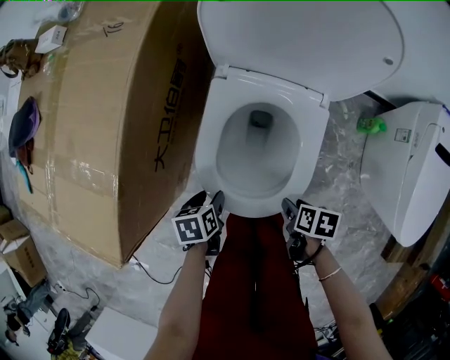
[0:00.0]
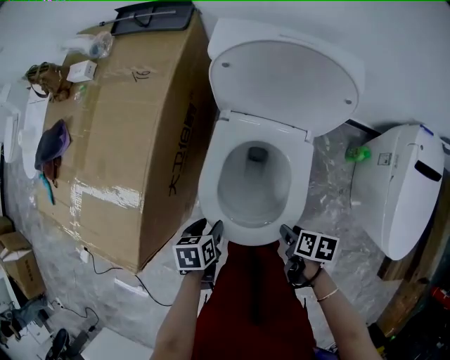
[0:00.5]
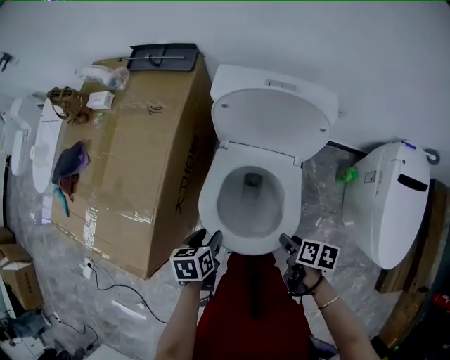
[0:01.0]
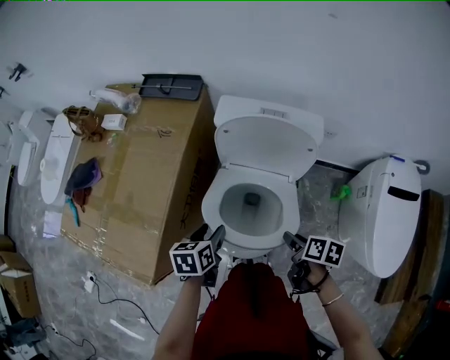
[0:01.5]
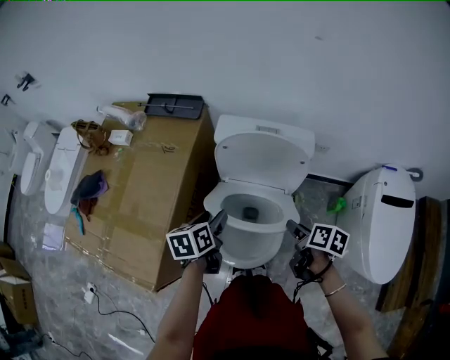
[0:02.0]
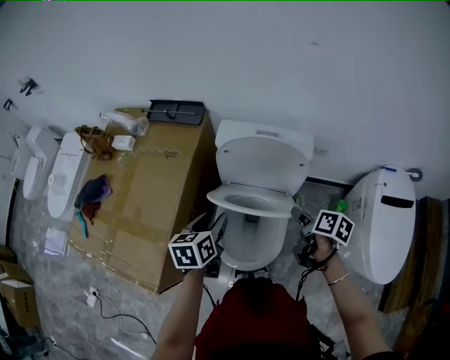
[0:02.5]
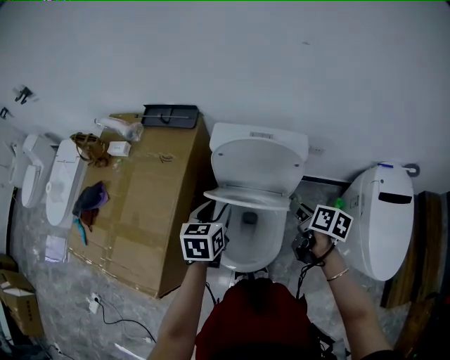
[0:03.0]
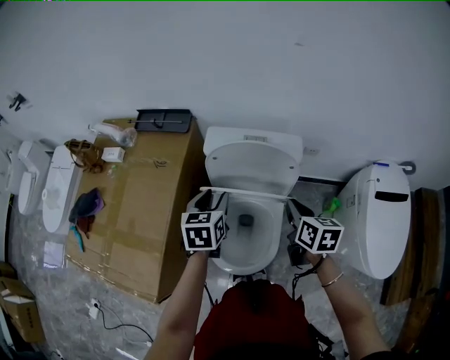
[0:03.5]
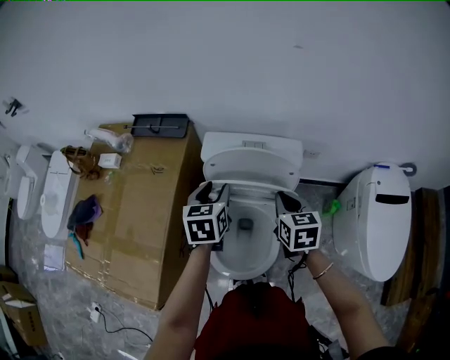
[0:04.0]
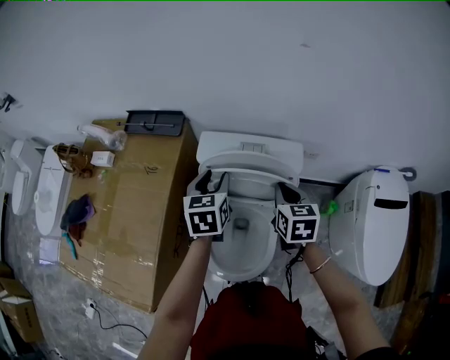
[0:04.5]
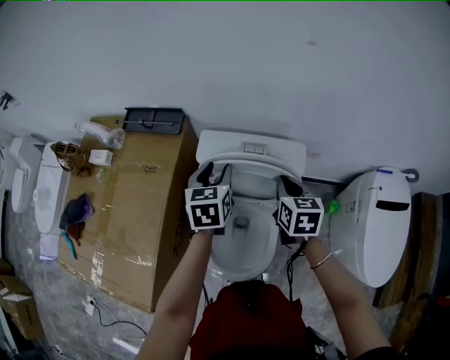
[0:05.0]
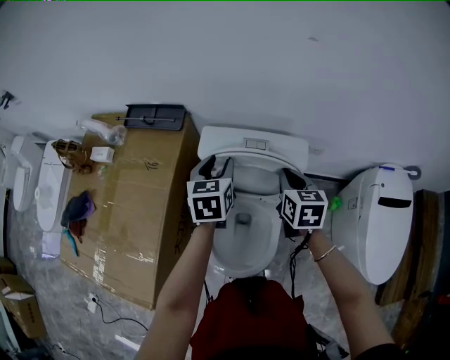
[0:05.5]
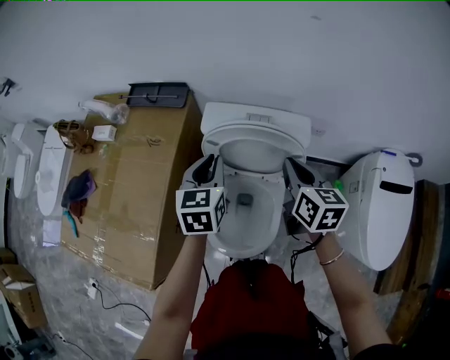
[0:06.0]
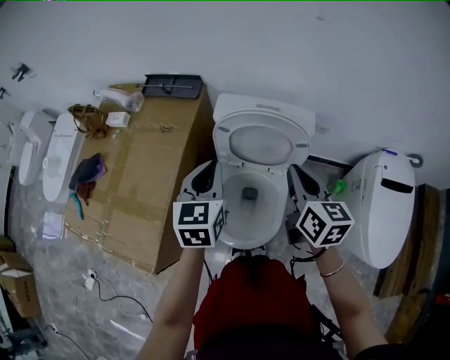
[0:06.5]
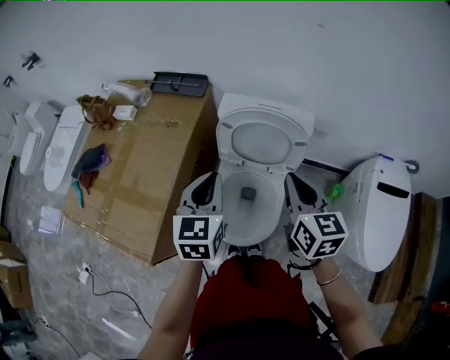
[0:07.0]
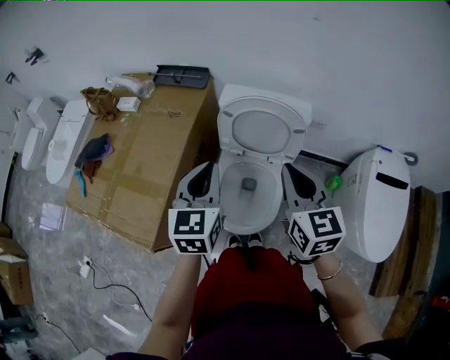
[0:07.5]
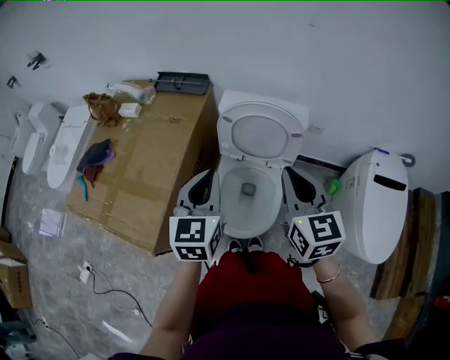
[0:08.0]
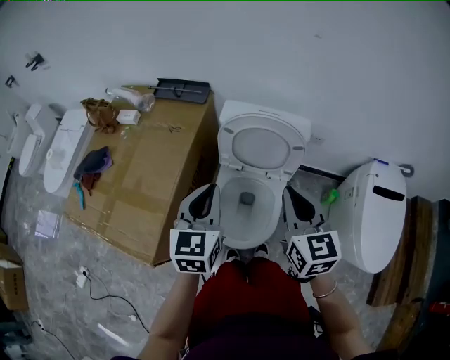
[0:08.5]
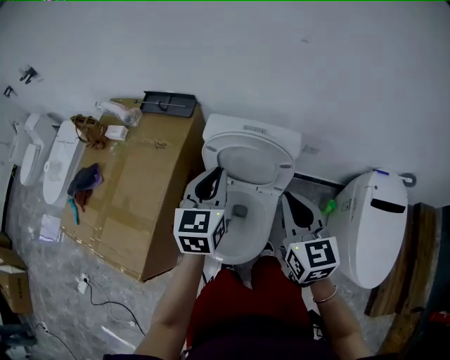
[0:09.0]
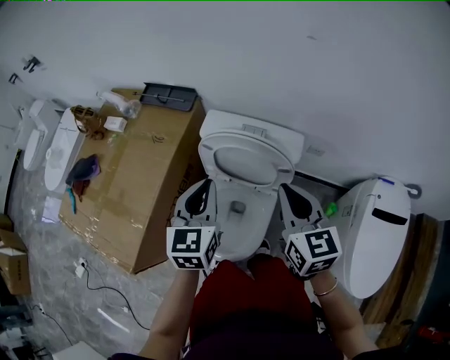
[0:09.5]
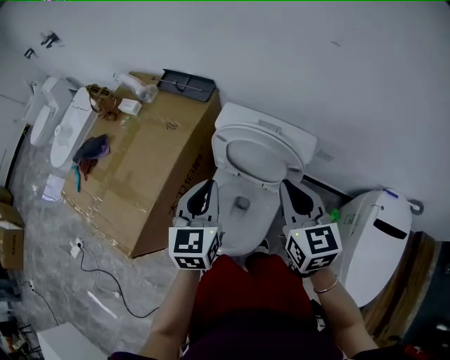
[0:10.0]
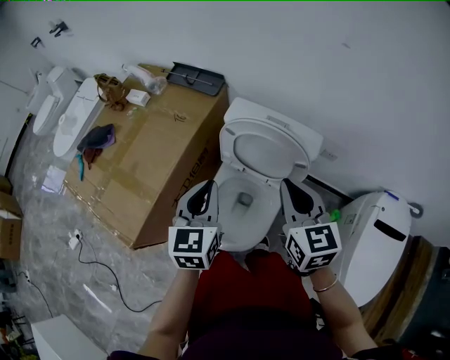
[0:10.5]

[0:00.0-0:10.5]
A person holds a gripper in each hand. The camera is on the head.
0:00.0 to 0:02.0: Both grippers move upward and forward, roughly 35 cm. The left gripper changes its angle by approximately 30 degrees. The right gripper changes its angle by approximately 30 degrees.
0:02.0 to 0:04.0: The right gripper travels forward and upward by roughly 15 cm, rotates around the line of its fingers by about 40 degrees, counterclockwise from behind, and closes its fingers. Meanwhile the left gripper travels forward, upward and to the right by some 15 cm, and turns by roughly 30 degrees.
0:04.0 to 0:06.5: The right gripper travels upward and backward by about 10 cm; the left gripper goes some 10 cm backward and upward, and closes.
0:06.5 to 0:08.5: The right gripper is displaced backward and upward by roughly 10 cm. Meanwhile the left gripper heads backward, covering roughly 10 cm.
0:08.5 to 0:10.5: The right gripper goes some 10 cm forward.

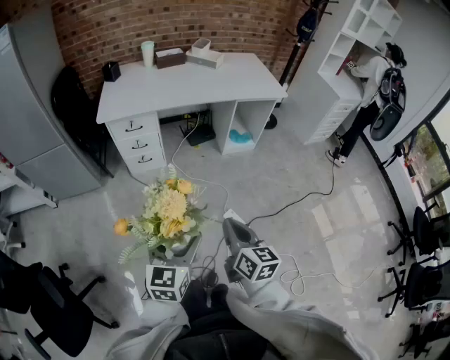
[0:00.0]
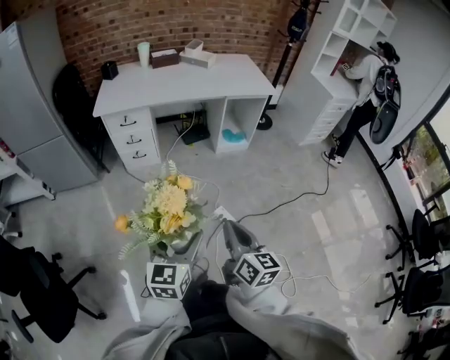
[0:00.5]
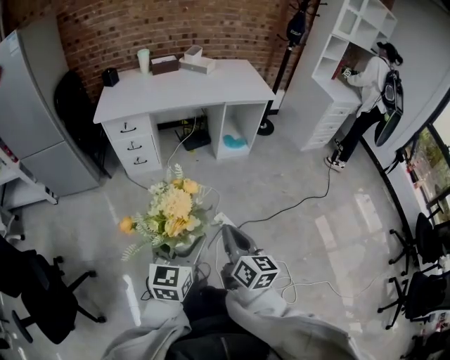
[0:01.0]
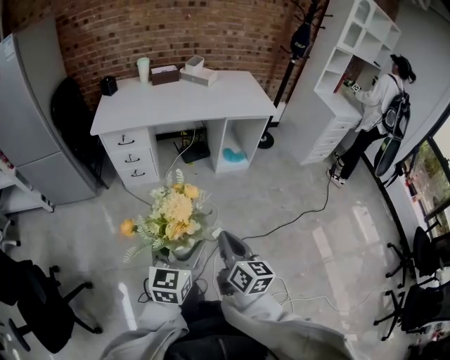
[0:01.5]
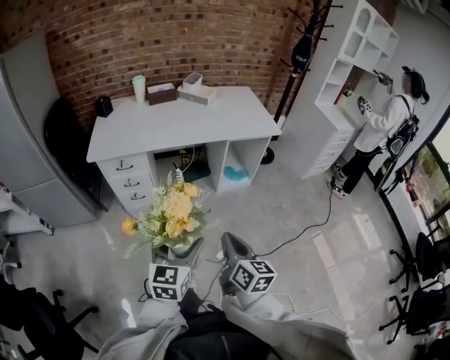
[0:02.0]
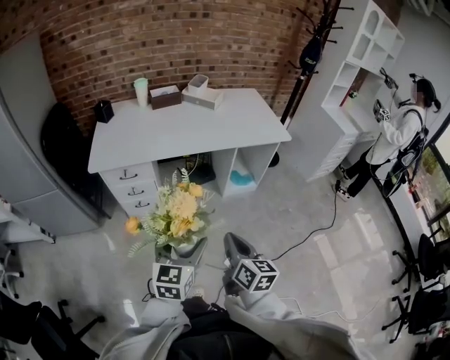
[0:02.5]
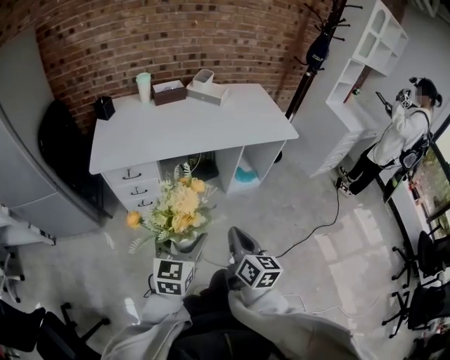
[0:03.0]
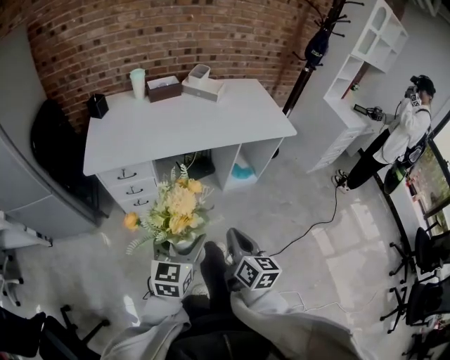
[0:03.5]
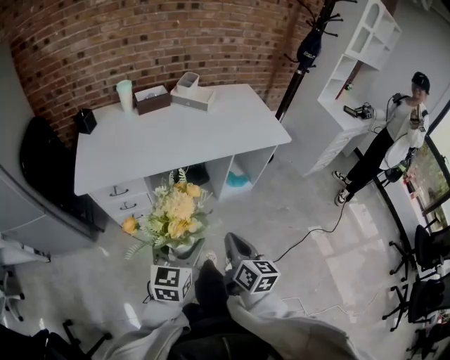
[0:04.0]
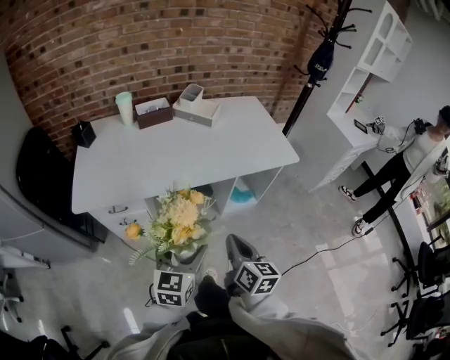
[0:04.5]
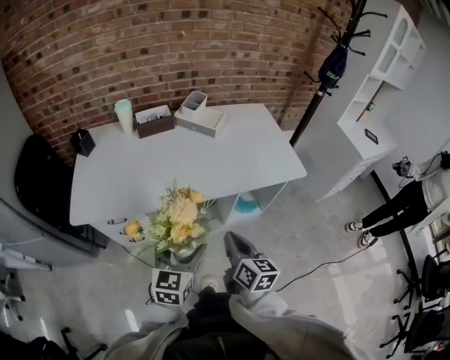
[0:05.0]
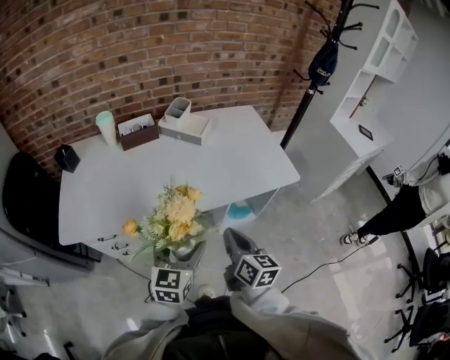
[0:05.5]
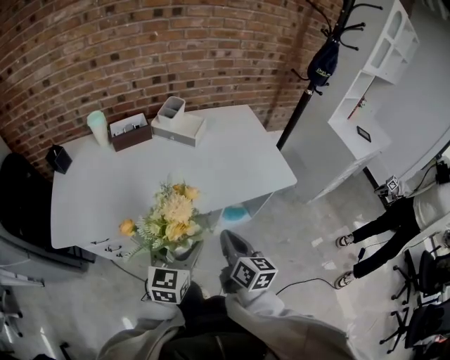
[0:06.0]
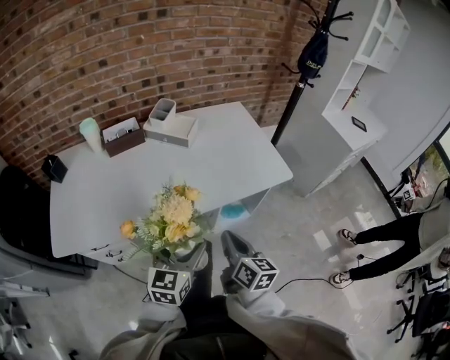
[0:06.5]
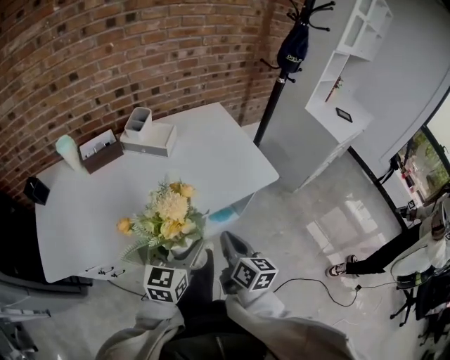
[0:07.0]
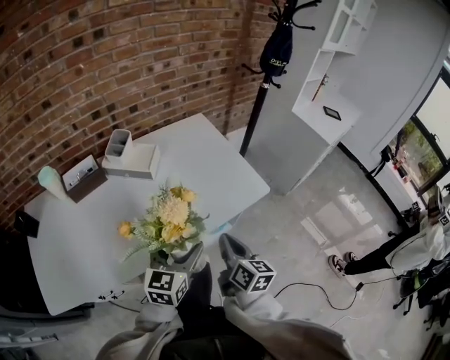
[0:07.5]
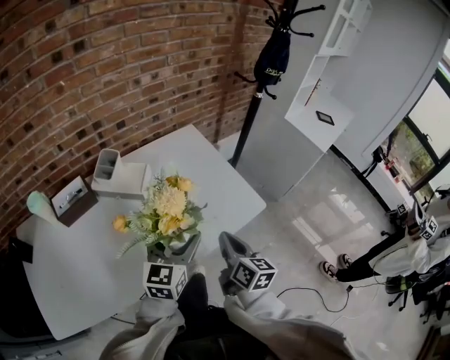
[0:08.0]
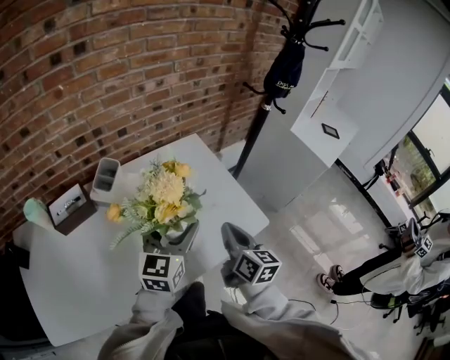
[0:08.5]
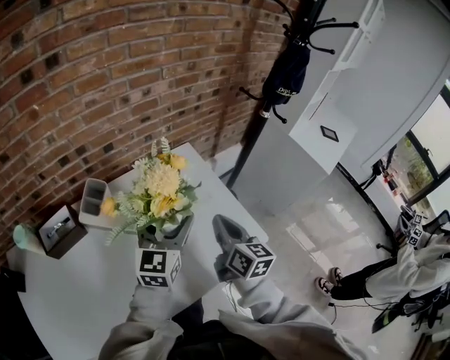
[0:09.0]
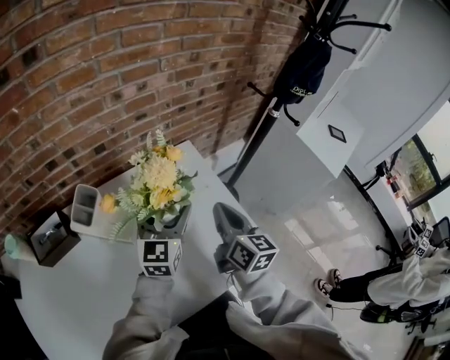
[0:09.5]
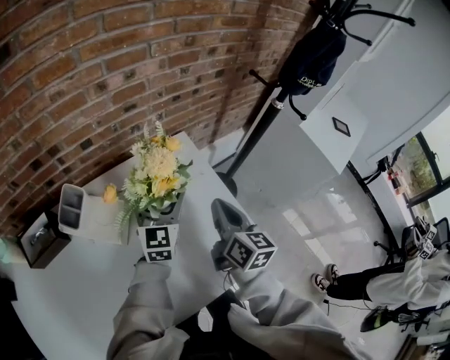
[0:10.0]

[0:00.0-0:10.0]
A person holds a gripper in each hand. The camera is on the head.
0:00.0 to 0:02.0: The grippers both shift forward and to the right by about 15 cm.
0:02.0 to 0:04.0: Both grippers travel together forward and to the left, about 20 cm.
0:04.0 to 0:06.0: Both grippers travel together forward, approximately 30 cm.
0:06.0 to 0:08.0: The left gripper moves forward, some 25 cm. Meanwhile the right gripper is displaced forward and to the right by approximately 25 cm.
0:08.0 to 0:10.0: Both grippers travel together forward, roughly 35 cm.

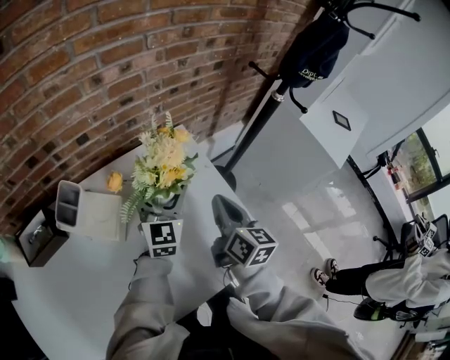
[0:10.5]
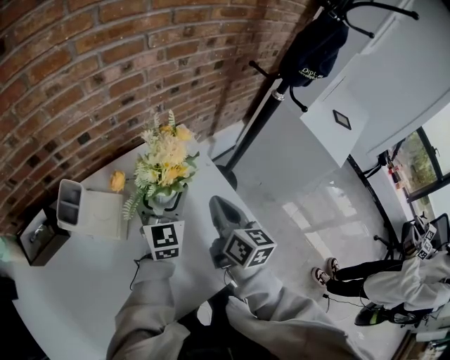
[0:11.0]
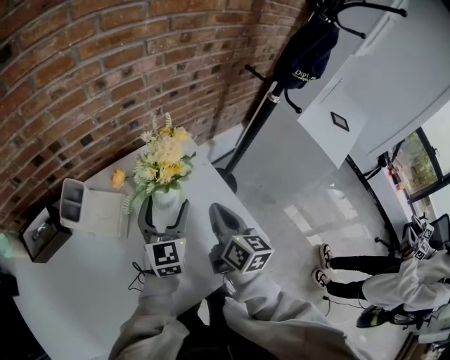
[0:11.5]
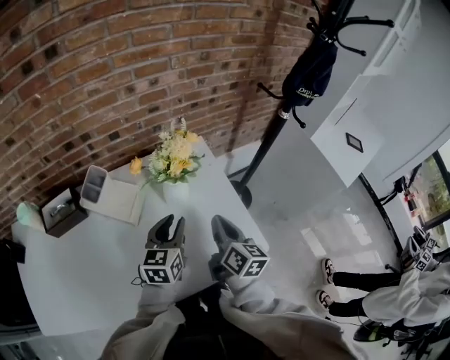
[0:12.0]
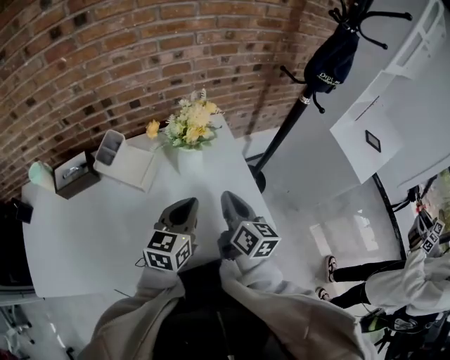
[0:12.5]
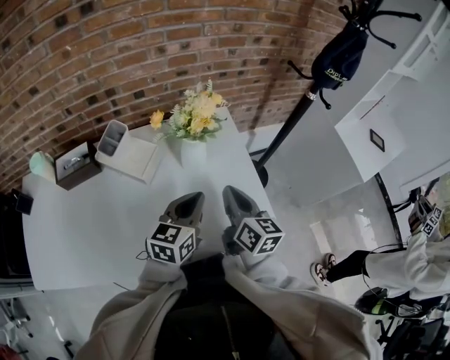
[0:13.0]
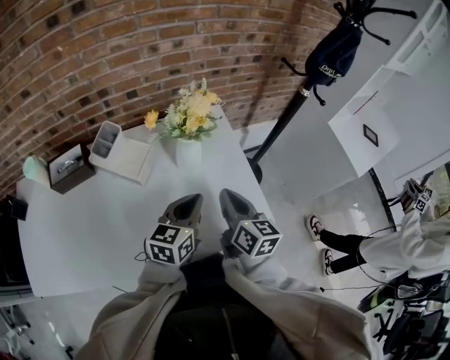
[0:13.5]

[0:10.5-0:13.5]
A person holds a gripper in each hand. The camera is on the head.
0:10.5 to 0:12.0: The left gripper goes roughly 15 cm backward, rotates some 30 degrees, and closes, while the right gripper moves backward, some 10 cm.
0:12.0 to 0:13.5: The left gripper travels backward by about 5 cm, and closes.

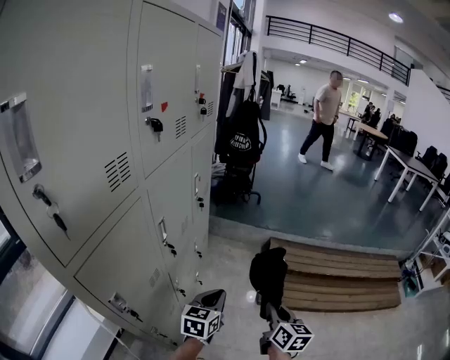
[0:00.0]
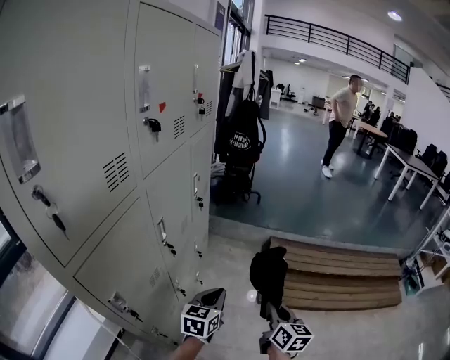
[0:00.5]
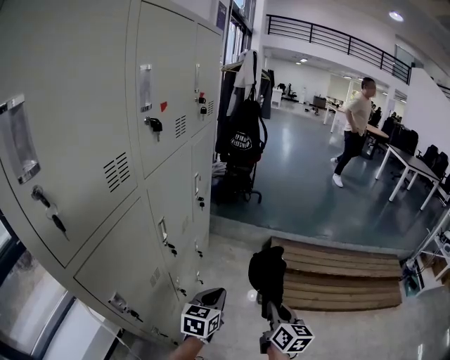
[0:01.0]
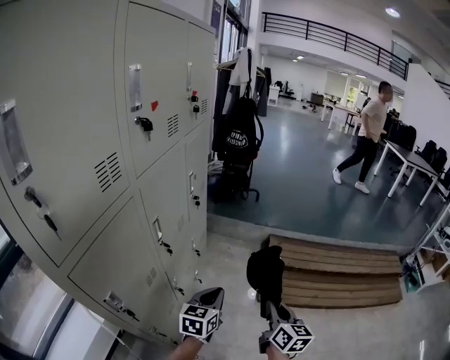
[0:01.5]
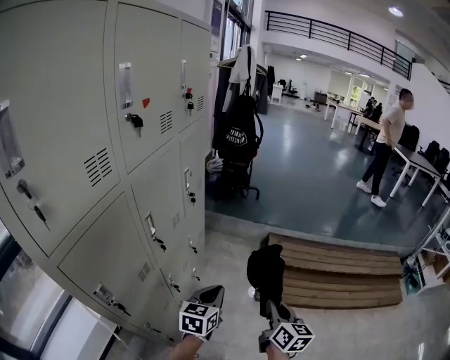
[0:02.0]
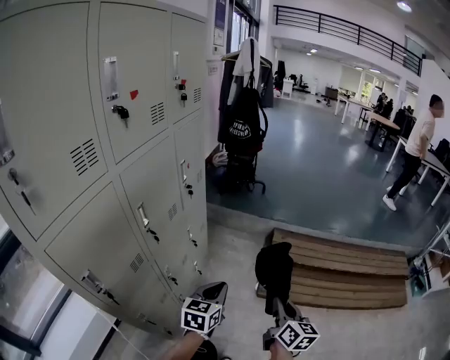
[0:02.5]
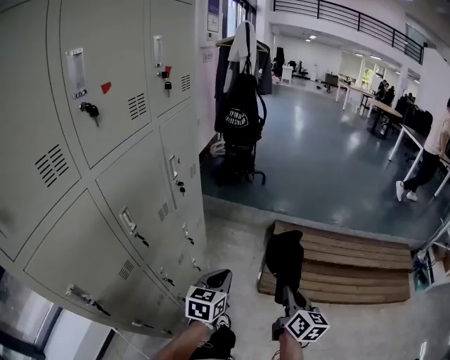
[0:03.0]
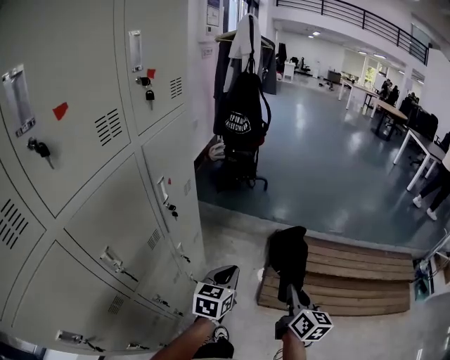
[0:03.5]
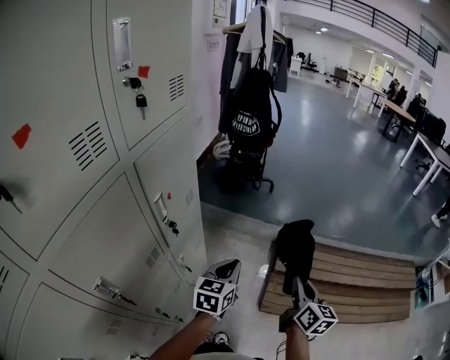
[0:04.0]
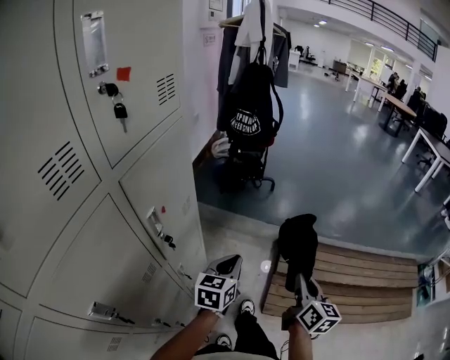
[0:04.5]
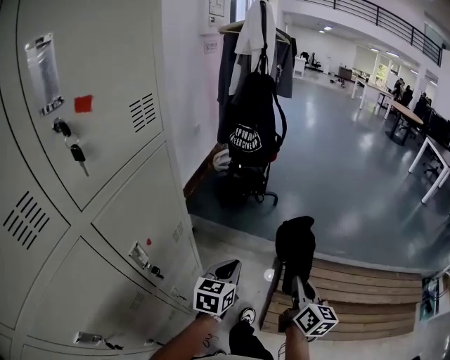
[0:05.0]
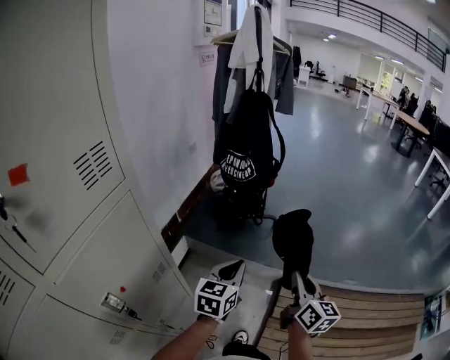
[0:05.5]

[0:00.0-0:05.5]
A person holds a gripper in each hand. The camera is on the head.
0:00.0 to 0:02.0: The grippers make only small movements.
0:02.0 to 0:03.5: Both grippers travel together forward, some 25 cm.
0:03.5 to 0:05.5: Both grippers are carried forward, approximately 50 cm.
